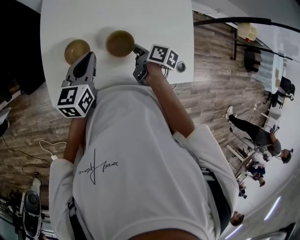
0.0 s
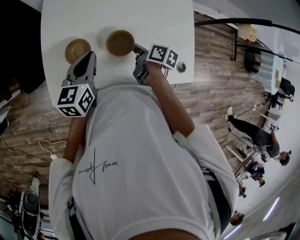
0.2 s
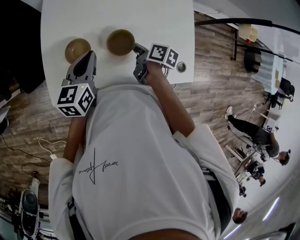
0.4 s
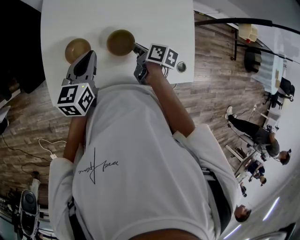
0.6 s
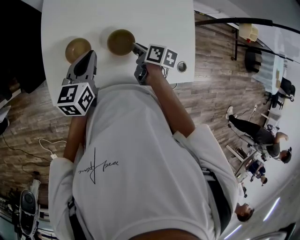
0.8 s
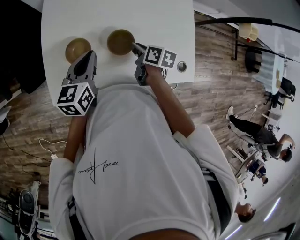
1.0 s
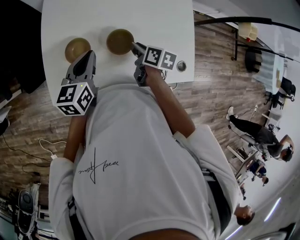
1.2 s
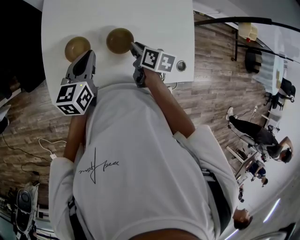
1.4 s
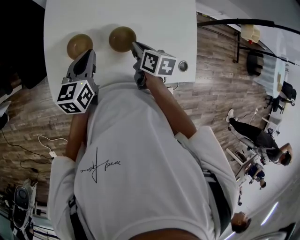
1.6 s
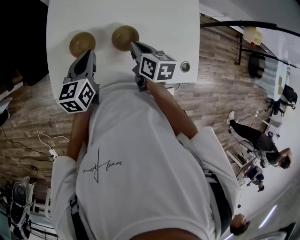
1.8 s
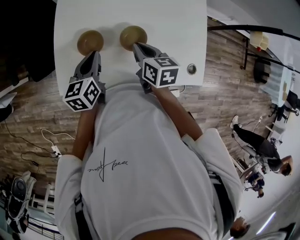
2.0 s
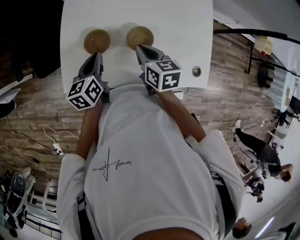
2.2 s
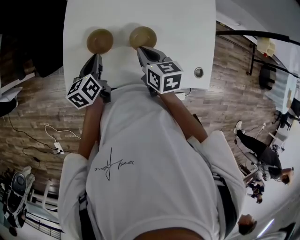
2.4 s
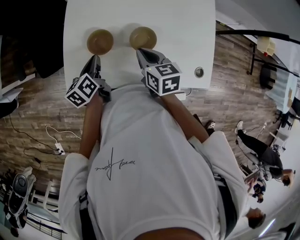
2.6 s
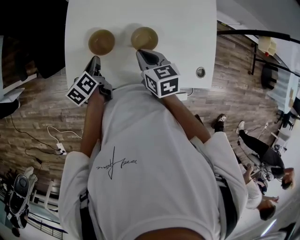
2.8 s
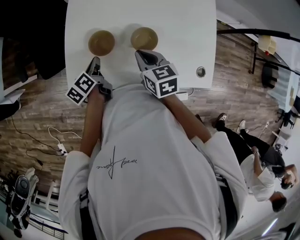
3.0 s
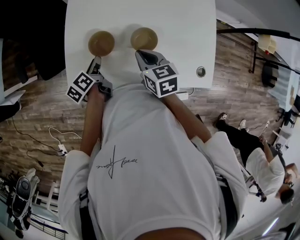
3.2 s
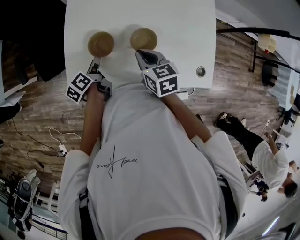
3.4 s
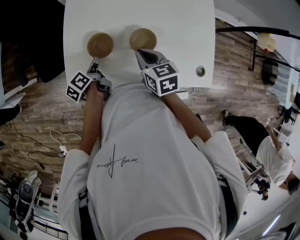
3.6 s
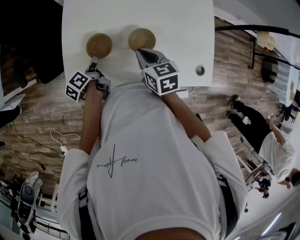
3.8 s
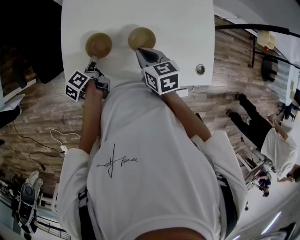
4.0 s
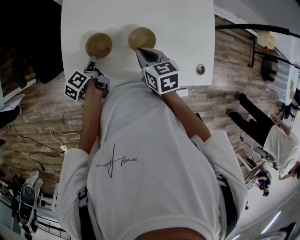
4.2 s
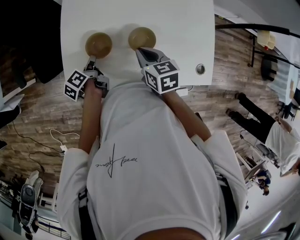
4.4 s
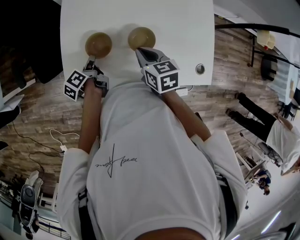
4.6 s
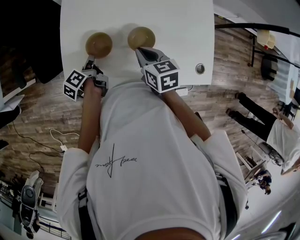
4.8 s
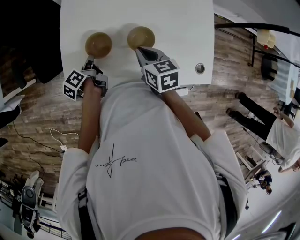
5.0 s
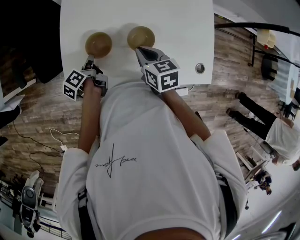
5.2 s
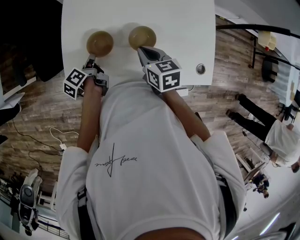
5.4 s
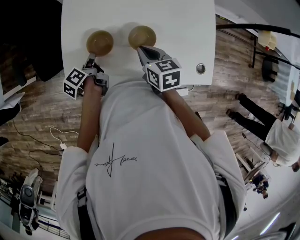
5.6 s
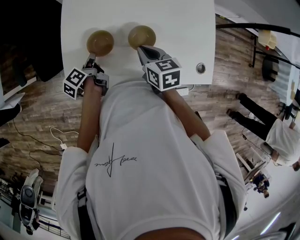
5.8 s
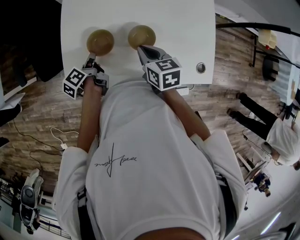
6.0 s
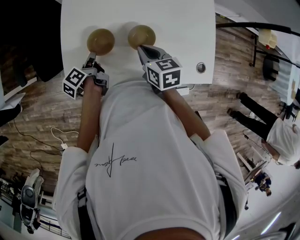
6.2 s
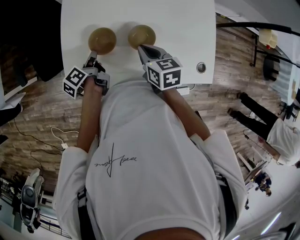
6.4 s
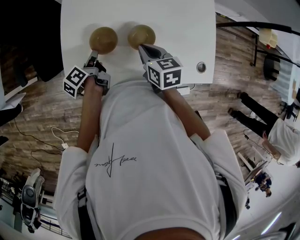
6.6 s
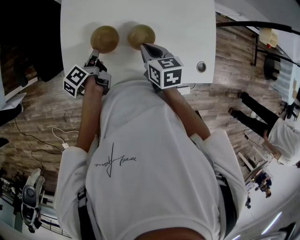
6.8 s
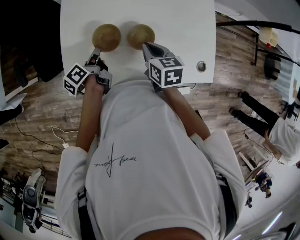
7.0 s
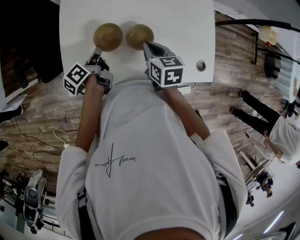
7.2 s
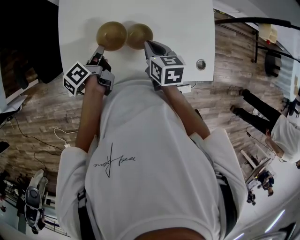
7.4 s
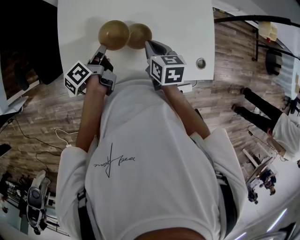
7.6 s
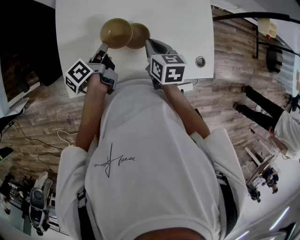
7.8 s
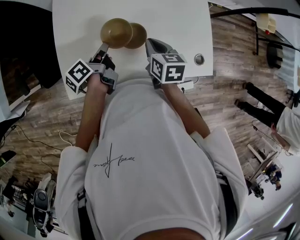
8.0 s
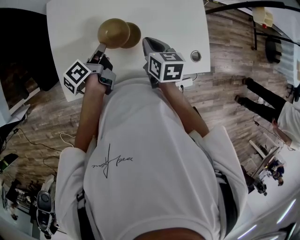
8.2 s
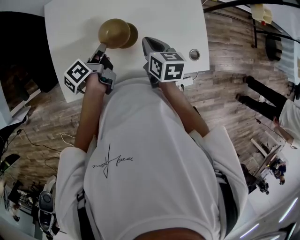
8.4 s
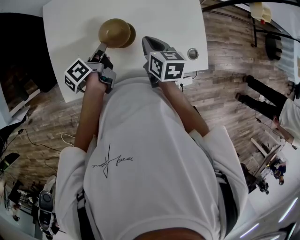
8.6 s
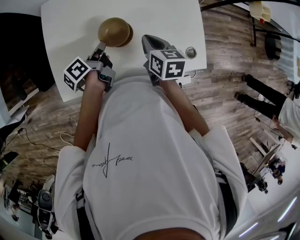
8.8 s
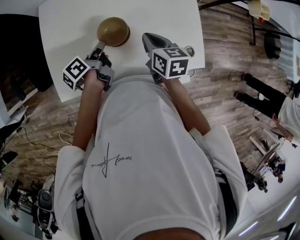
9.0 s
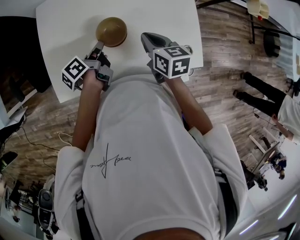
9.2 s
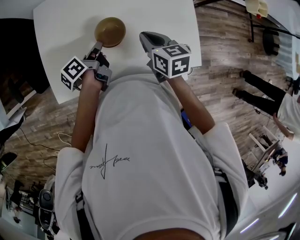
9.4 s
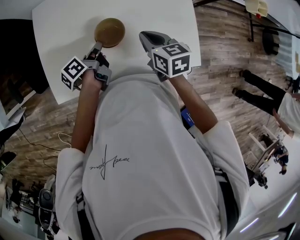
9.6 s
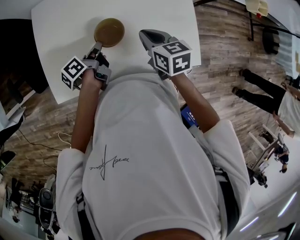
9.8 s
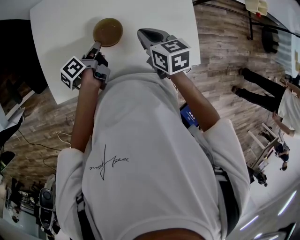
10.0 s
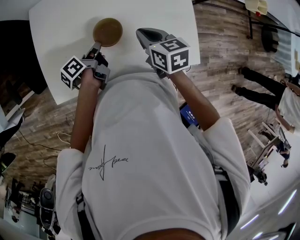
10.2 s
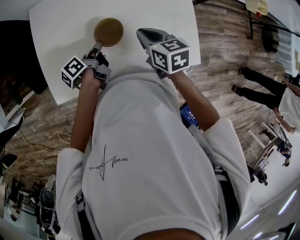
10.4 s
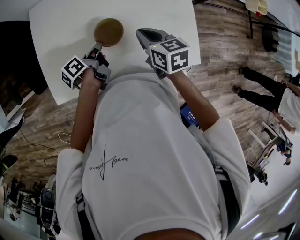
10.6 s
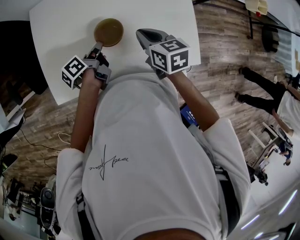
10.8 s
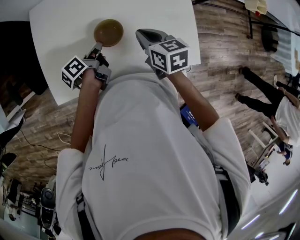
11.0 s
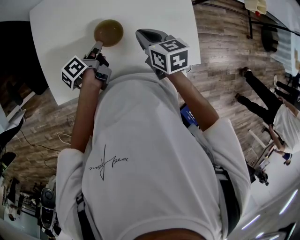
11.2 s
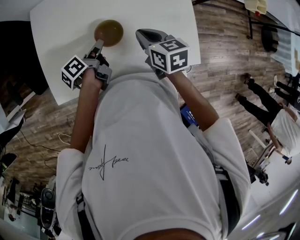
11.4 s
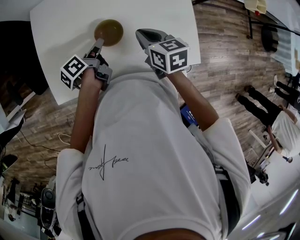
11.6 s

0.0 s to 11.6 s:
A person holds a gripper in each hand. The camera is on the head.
0.0 to 1.4 s: The right gripper turns by roughly 20 degrees.
1.4 to 2.8 s: The left gripper shifts some 15 cm downward and to the left, and rotates roughly 40 degrees, while the right gripper goes about 10 cm to the left and upward, and rotates roughly 40 degrees.
2.8 to 4.4 s: The left gripper shifts approximately 5 cm downward, swivels approximately 20 degrees, and opens.
4.4 to 5.8 s: The two grippers keep their place.
5.8 to 7.2 s: The left gripper changes place by some 5 cm.
7.2 to 8.8 s: Both grippers move to the right, roughly 10 cm.
8.8 to 10.2 s: The grippers stay close to where they were, moving slightly.
10.2 to 11.6 s: The left gripper opens its fingers.

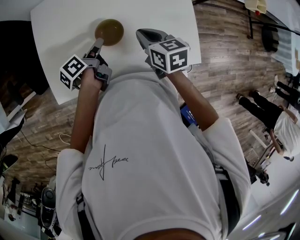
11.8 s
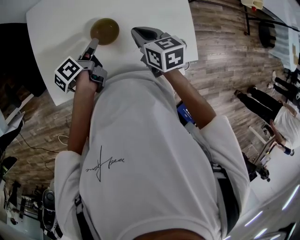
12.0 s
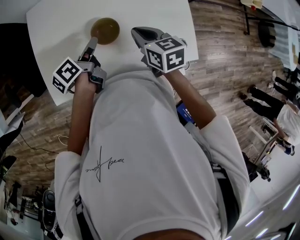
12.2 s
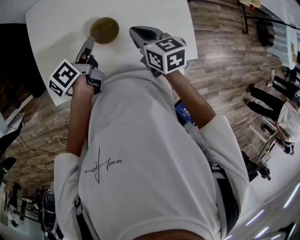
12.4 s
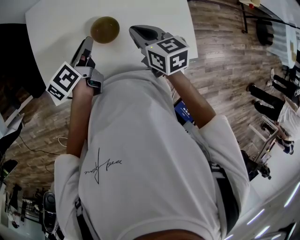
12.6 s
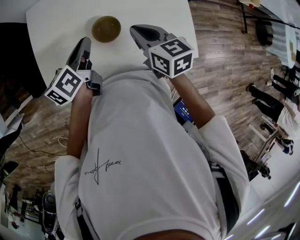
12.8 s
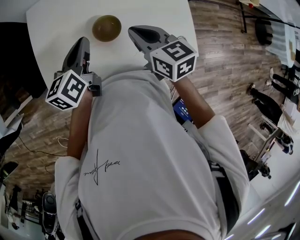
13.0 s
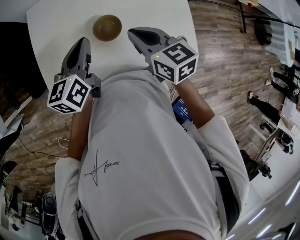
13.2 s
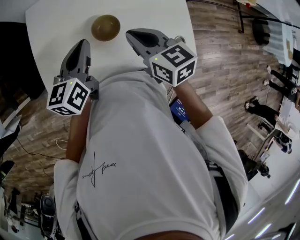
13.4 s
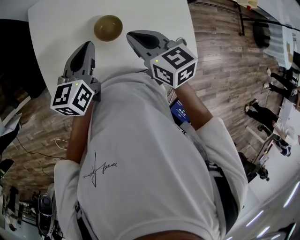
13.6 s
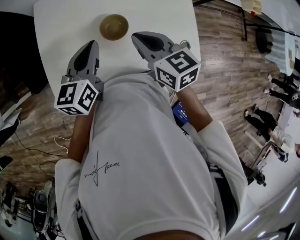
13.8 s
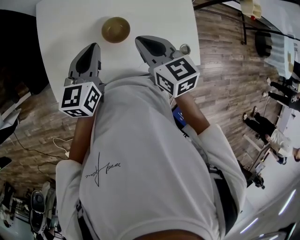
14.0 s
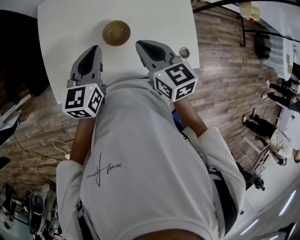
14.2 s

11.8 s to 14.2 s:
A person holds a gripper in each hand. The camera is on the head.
11.8 to 13.0 s: The left gripper travels upward by roughly 10 cm, rolls clockwise, seen from behind, by some 40 degrees, and closes; the right gripper moves upward, some 5 cm.
13.0 to 14.2 s: The left gripper turns by approximately 20 degrees.

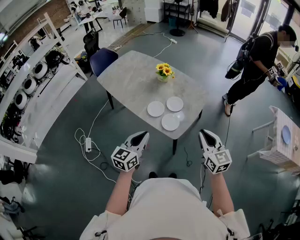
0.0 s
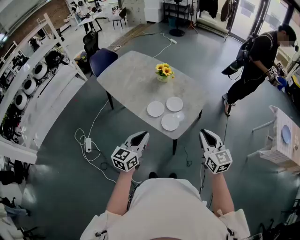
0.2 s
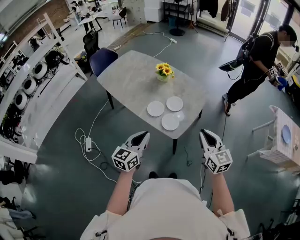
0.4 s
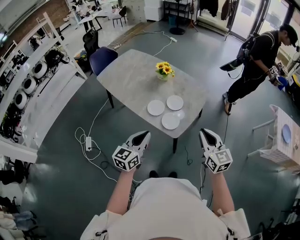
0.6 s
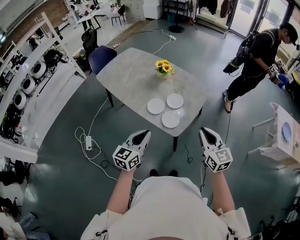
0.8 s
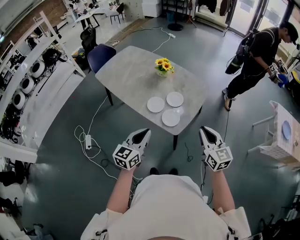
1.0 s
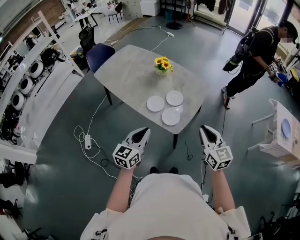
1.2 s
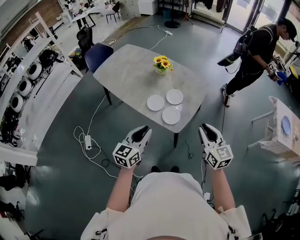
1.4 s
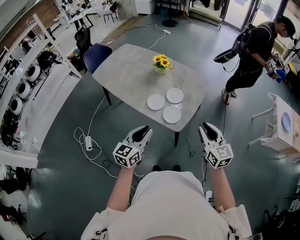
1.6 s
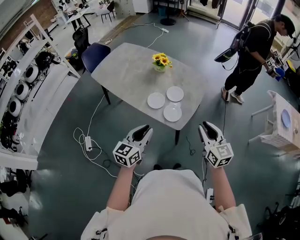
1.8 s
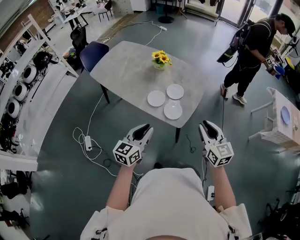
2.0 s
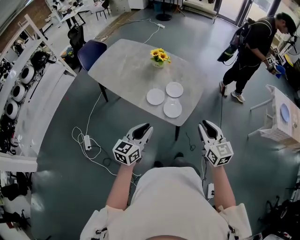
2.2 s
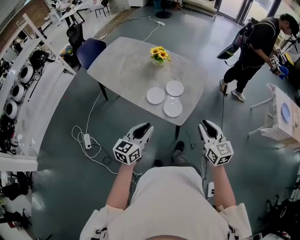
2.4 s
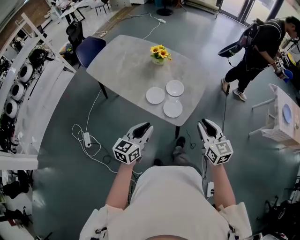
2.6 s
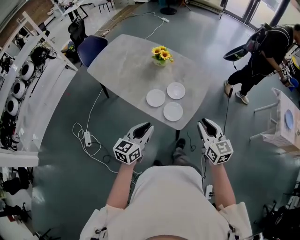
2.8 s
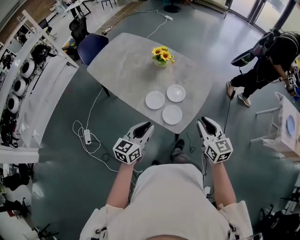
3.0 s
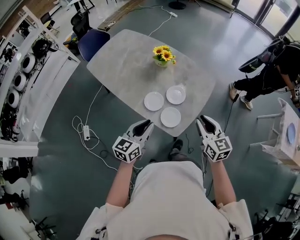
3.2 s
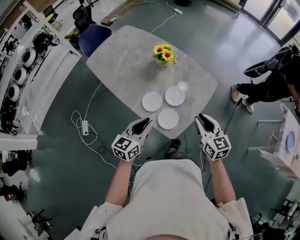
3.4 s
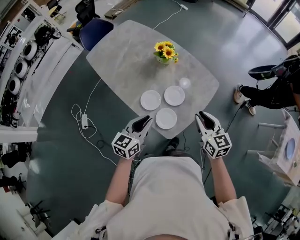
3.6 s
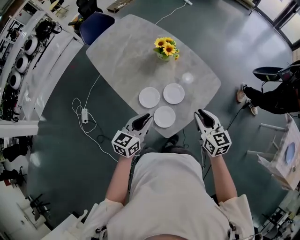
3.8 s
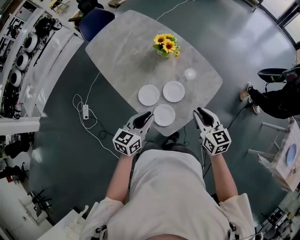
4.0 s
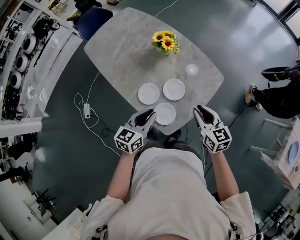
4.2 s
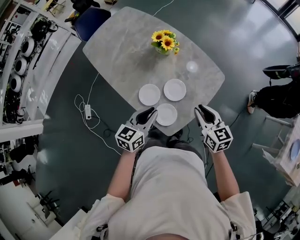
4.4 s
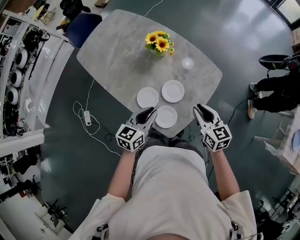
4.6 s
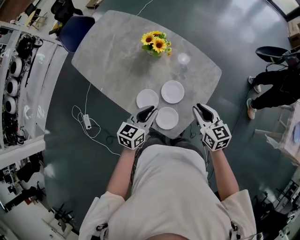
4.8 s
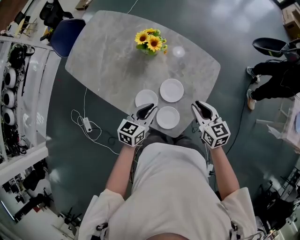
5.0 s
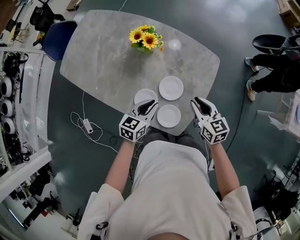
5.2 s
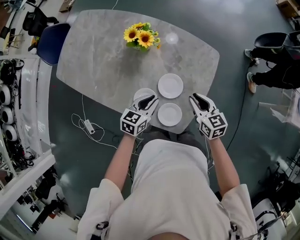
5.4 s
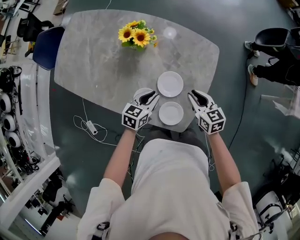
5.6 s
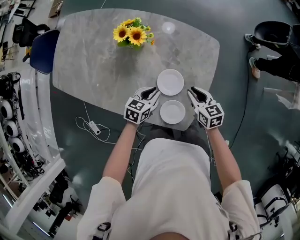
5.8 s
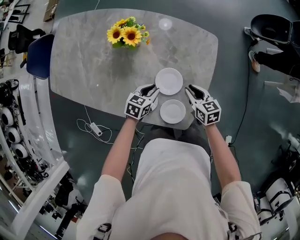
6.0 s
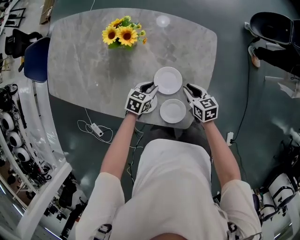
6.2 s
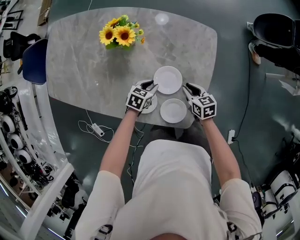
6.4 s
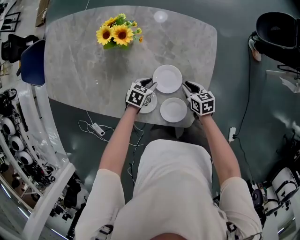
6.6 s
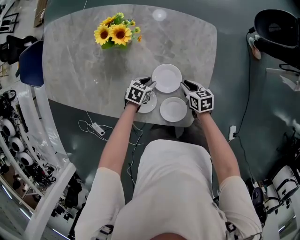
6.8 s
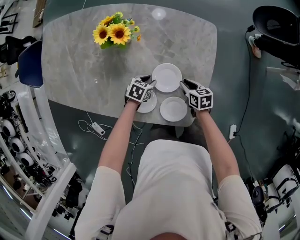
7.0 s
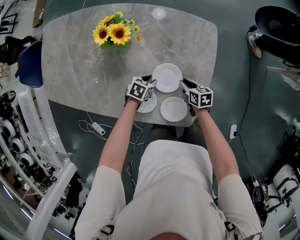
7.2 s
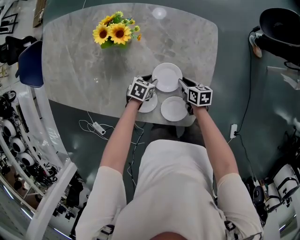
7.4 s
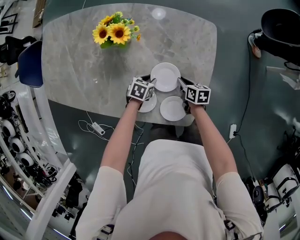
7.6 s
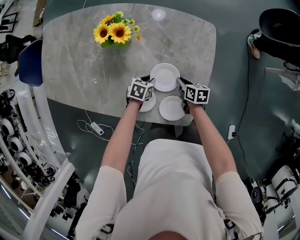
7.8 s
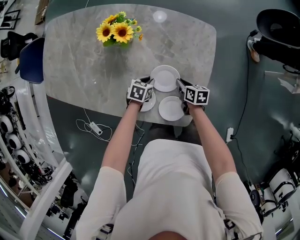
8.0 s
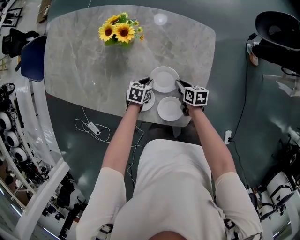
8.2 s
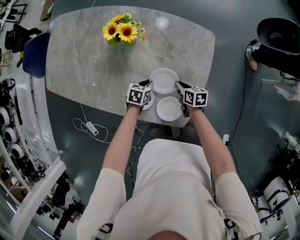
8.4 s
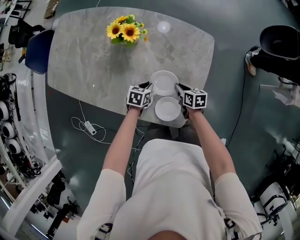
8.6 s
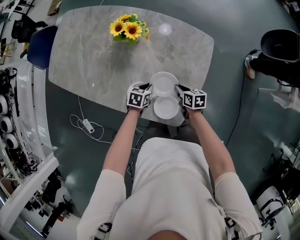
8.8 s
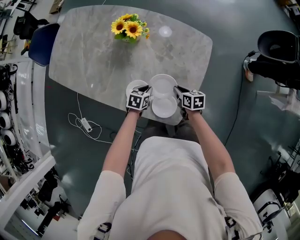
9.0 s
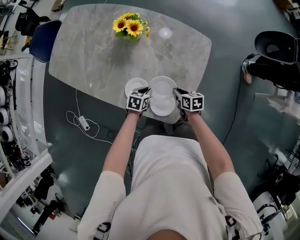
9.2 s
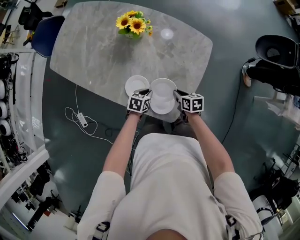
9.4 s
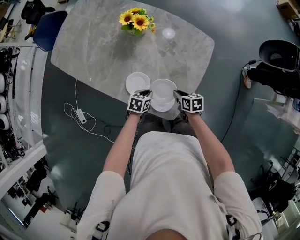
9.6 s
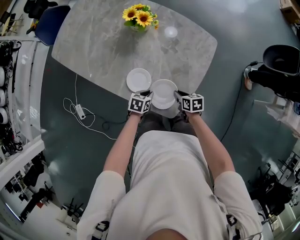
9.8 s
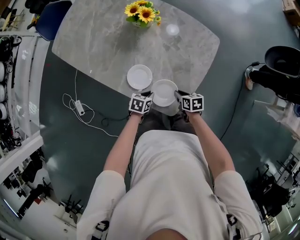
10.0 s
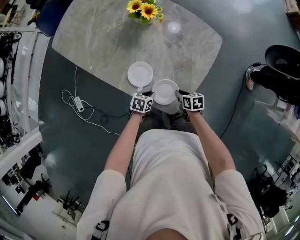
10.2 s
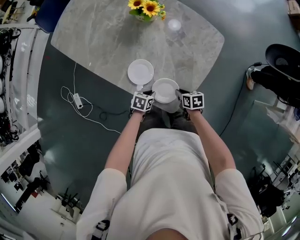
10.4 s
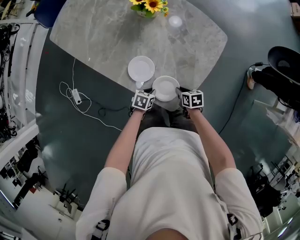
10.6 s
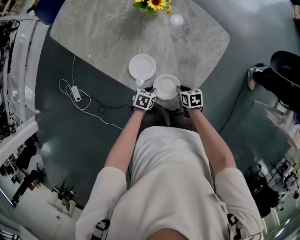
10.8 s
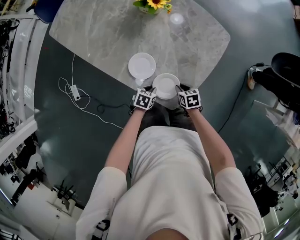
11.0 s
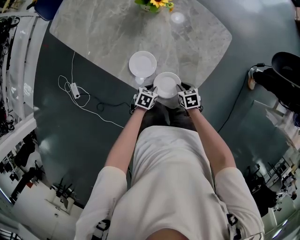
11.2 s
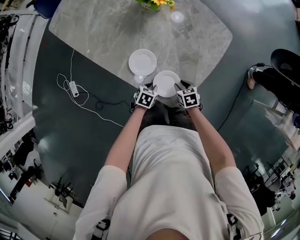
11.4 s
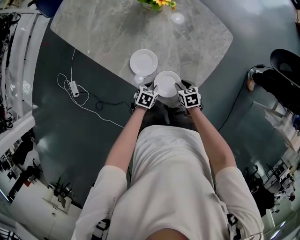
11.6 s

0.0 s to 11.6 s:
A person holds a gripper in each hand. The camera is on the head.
0.0 to 1.4 s: The grippers stay close to where they were, moving slightly.
1.4 to 2.8 s: Both grippers travel together forward, roughly 5 cm.
2.8 to 4.4 s: The left gripper travels forward and to the right by roughly 25 cm. Meanwhile the right gripper shifts roughly 25 cm forward.
4.4 to 5.8 s: The two grippers go roughly 20 cm downward. The left gripper swivels approximately 40 degrees. Meanwhile the right gripper changes its angle by approximately 30 degrees.
5.8 to 7.2 s: The two grippers go approximately 15 cm downward. The right gripper turns by some 30 degrees. Meanwhile the left gripper changes its angle by roughly 30 degrees.
7.2 to 8.8 s: The grippers both shift upward by roughly 5 cm. The left gripper swivels roughly 20 degrees.
8.8 to 10.2 s: The grippers both shift backward by some 15 cm.
10.2 to 11.6 s: The right gripper swivels approximately 20 degrees, and opens.
